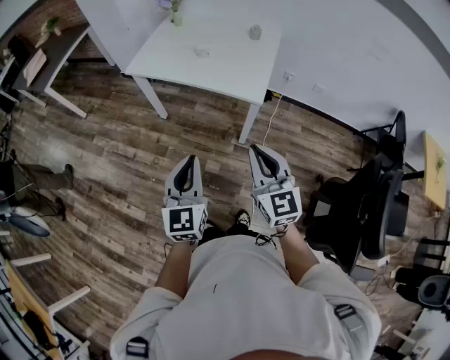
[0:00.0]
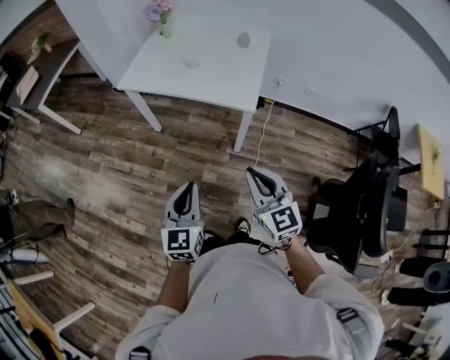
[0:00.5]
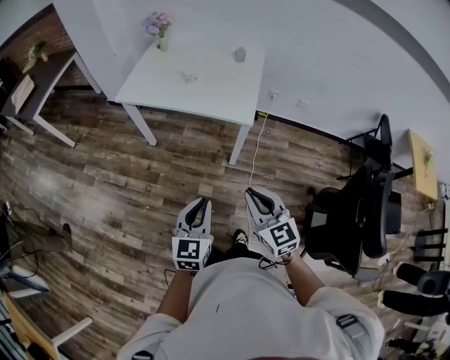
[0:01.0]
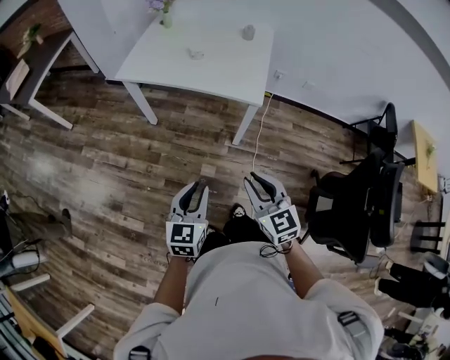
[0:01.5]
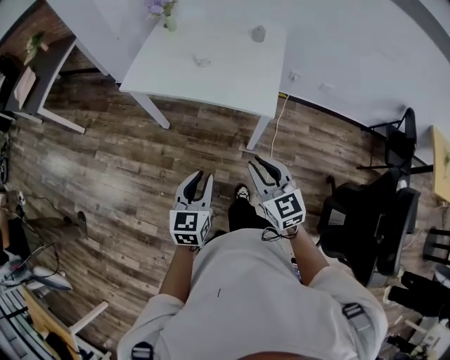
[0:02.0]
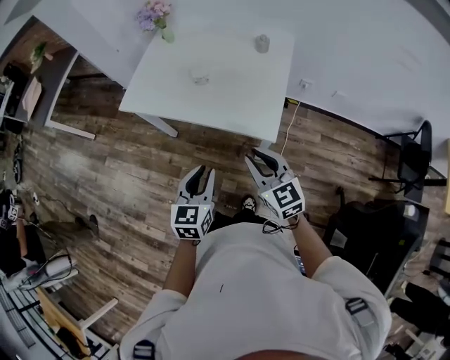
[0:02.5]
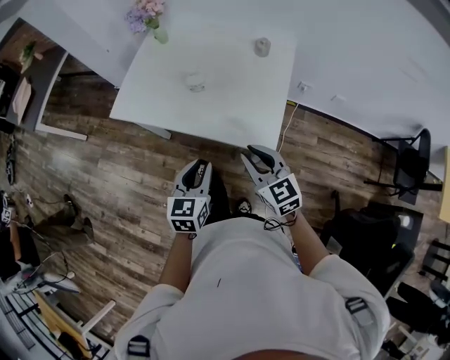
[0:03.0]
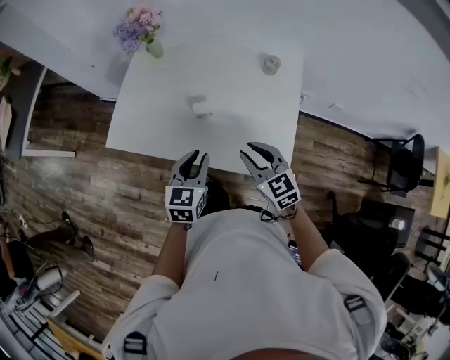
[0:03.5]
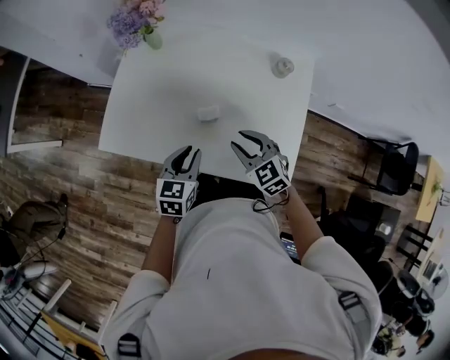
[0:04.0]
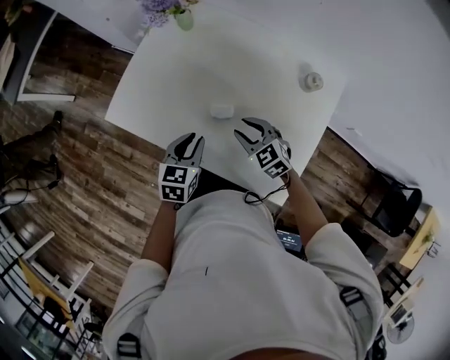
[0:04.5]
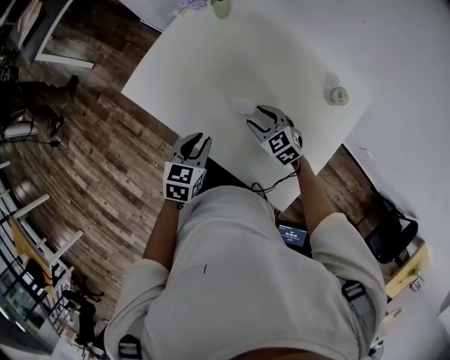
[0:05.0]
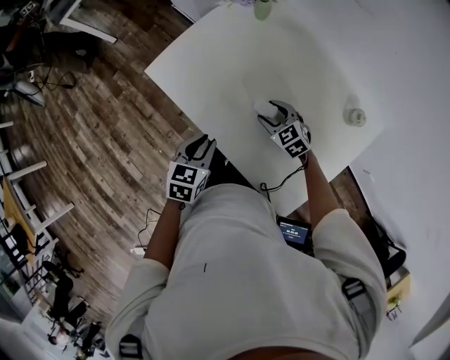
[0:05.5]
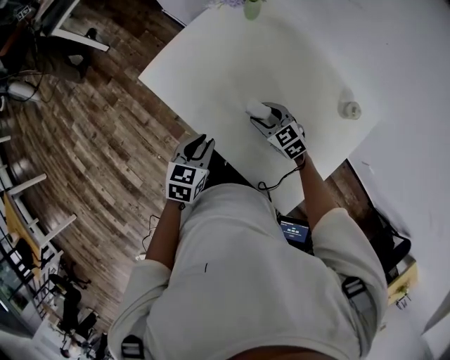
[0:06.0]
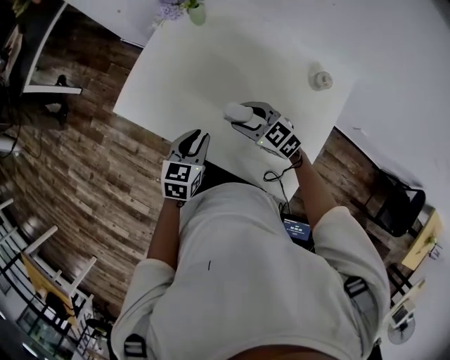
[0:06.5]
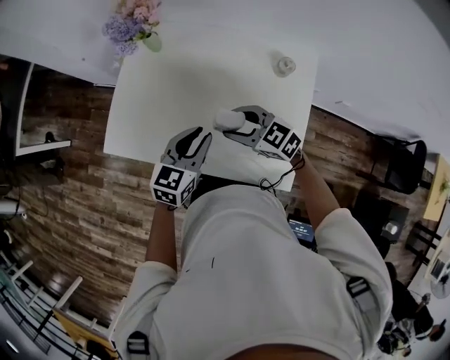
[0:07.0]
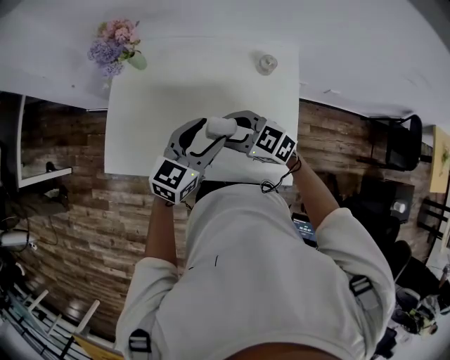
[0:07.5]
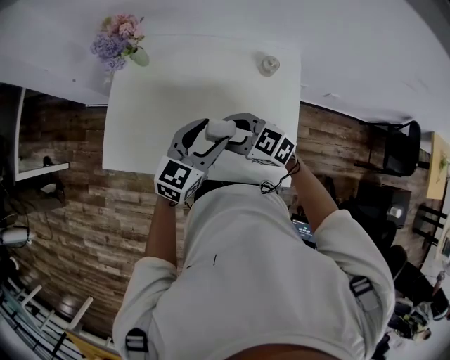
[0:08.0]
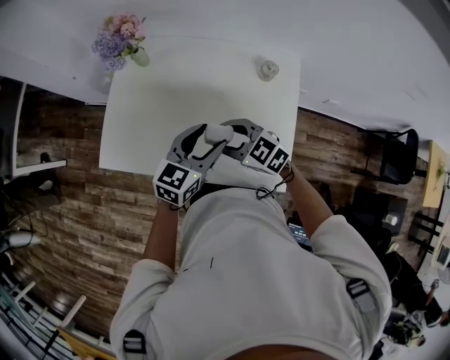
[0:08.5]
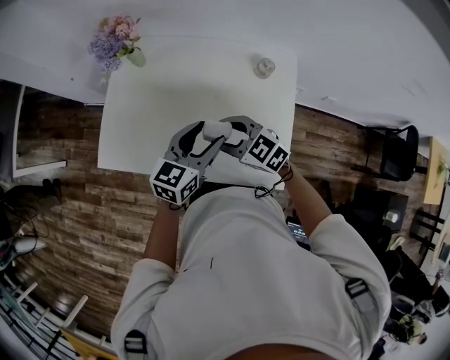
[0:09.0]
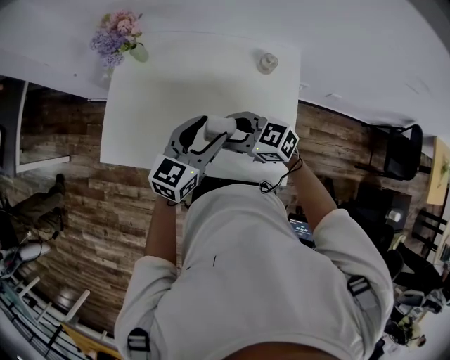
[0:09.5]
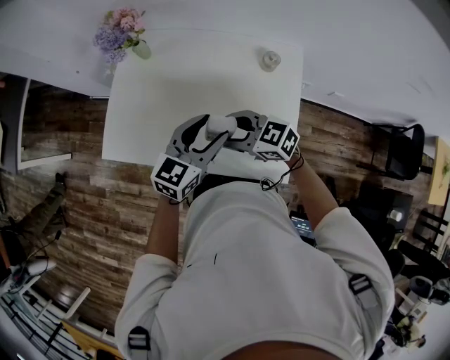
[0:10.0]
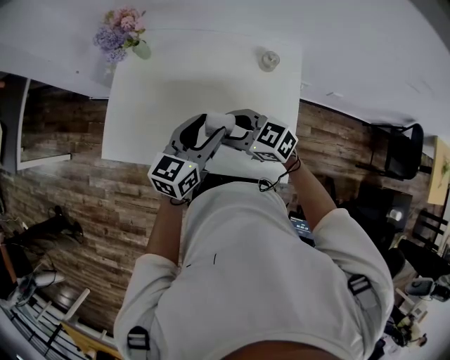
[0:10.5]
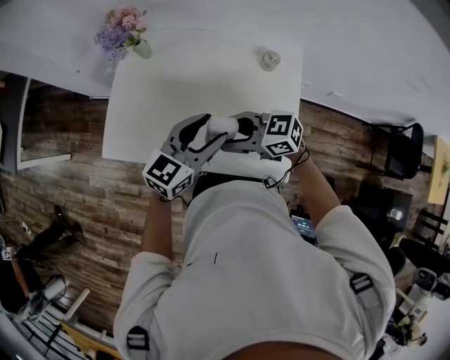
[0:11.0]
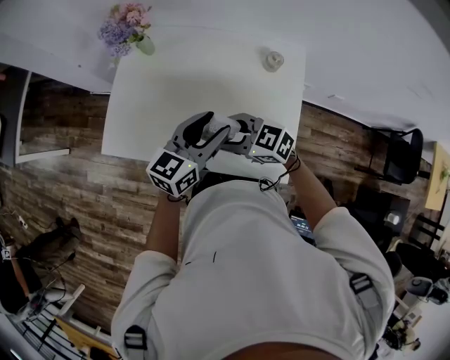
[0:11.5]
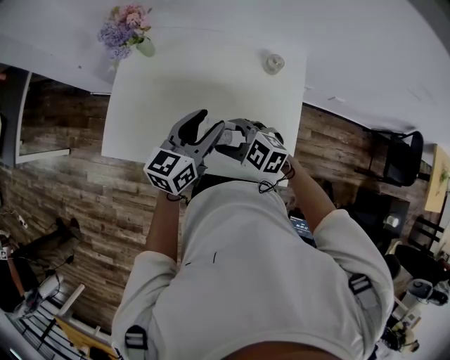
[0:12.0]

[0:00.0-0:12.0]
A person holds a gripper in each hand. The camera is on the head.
0:00.0 to 0:02.0: The right gripper is displaced forward and downward by roughly 15 cm. The left gripper moves downward and forward, approximately 15 cm, and swivels approximately 20 degrees.
0:02.0 to 0:04.0: The two grippers travel together, forward, approximately 50 cm. The right gripper changes its angle by about 20 degrees.
0:04.0 to 0:06.0: The right gripper ends up roughly 15 cm from where it was, and turns by approximately 30 degrees, while the left gripper shifts by roughly 5 cm, and rotates about 20 degrees.
0:06.0 to 0:08.0: The left gripper ends up some 20 cm from where it was, swivels roughly 50 degrees, and opens, while the right gripper goes approximately 15 cm upward.
0:08.0 to 0:10.0: There are only small adjustments of the grippers.
0:10.0 to 0:12.0: The right gripper rotates about 20 degrees.

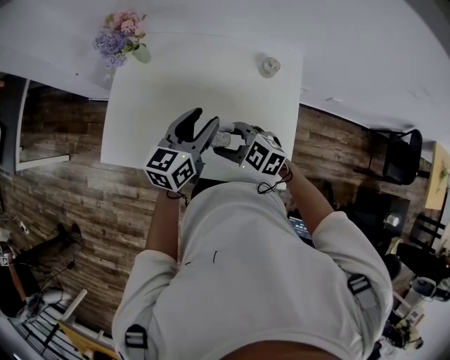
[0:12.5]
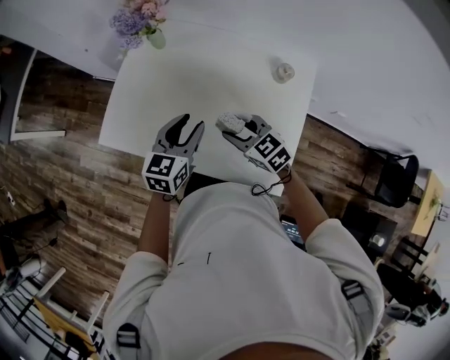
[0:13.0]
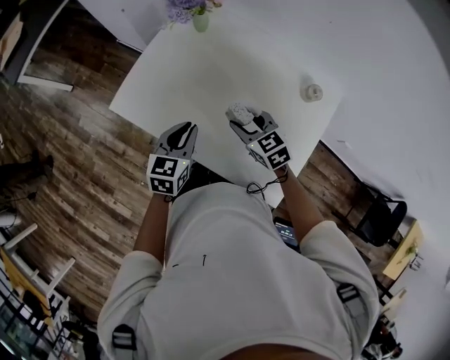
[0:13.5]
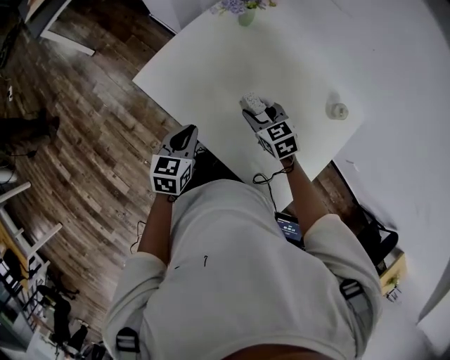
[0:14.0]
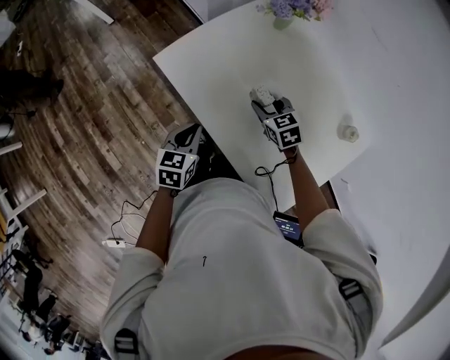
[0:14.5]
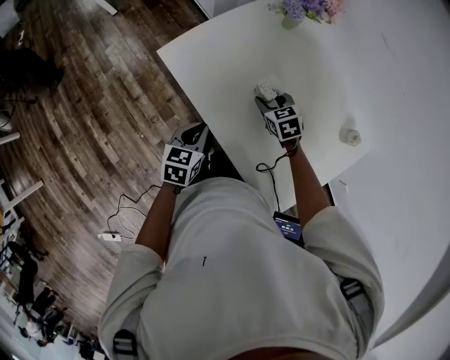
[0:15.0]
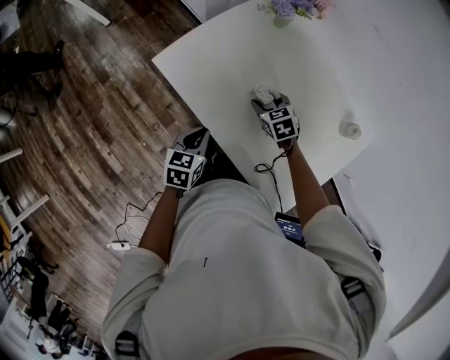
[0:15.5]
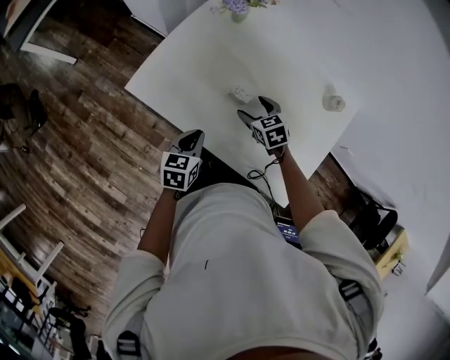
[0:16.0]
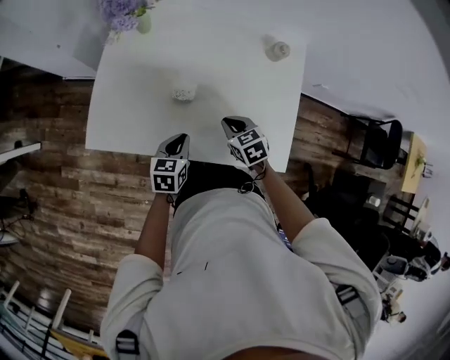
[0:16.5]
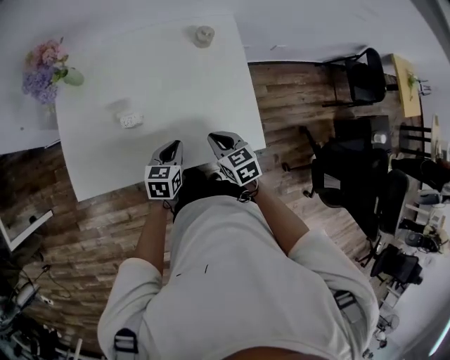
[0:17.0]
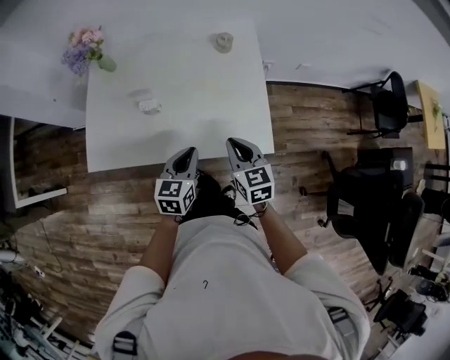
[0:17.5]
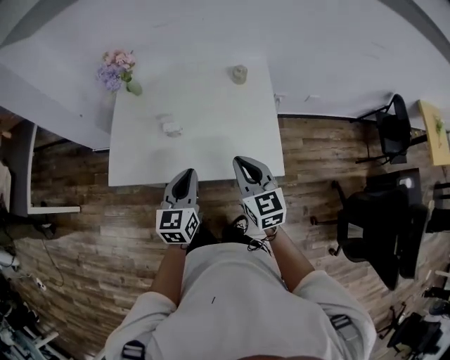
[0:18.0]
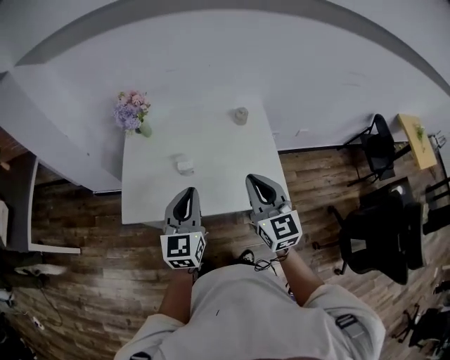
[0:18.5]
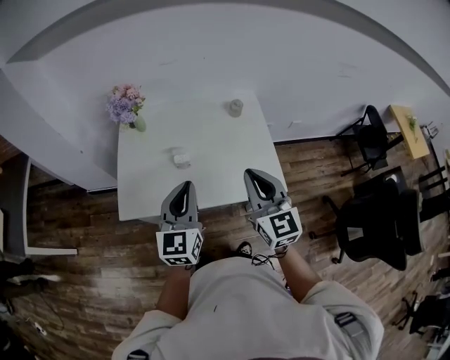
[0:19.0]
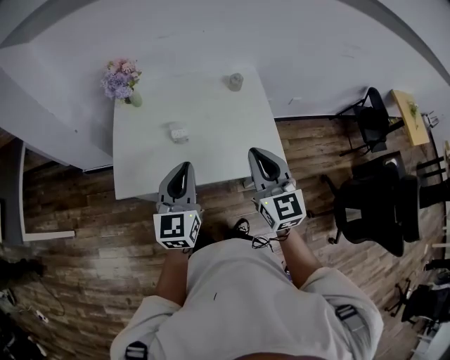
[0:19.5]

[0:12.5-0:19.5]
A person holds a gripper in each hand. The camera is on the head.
0:12.5 to 0:14.5: The right gripper is displaced forward, downward and to the left by about 20 cm. Meanwhile the left gripper goes roughly 30 cm to the left and downward, swivels about 50 degrees, and closes.
0:14.5 to 0:16.0: There are only small adjustments of the grippers.
0:16.0 to 0:17.5: The left gripper changes place by roughly 25 cm, and turns by about 40 degrees. Meanwhile the right gripper ends up about 35 cm from where it was, rotates roughly 50 degrees, and closes.
0:17.5 to 0:19.5: The two grippers go roughly 25 cm upward and to the left. The right gripper rotates roughly 30 degrees. The left gripper swivels roughly 30 degrees.

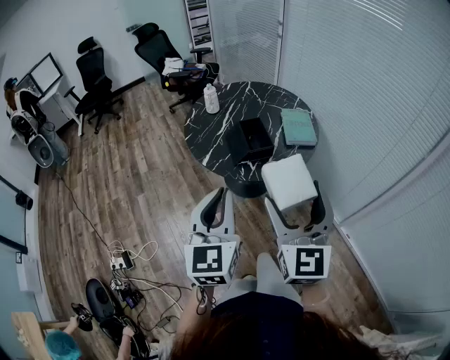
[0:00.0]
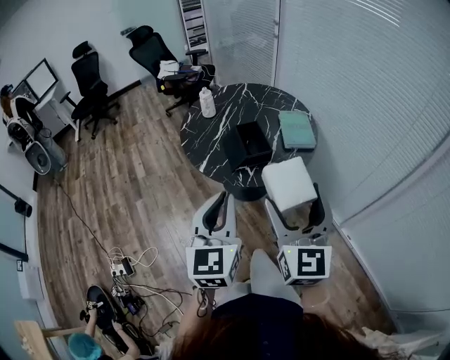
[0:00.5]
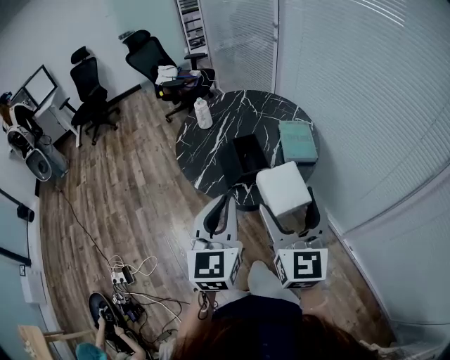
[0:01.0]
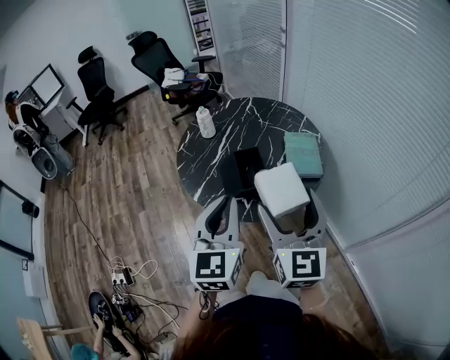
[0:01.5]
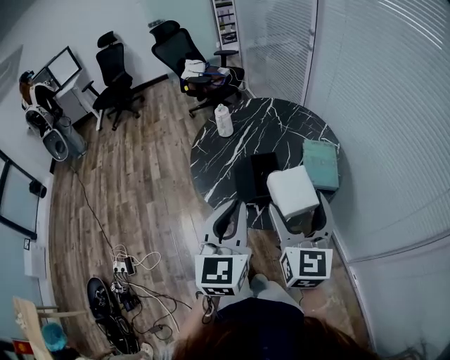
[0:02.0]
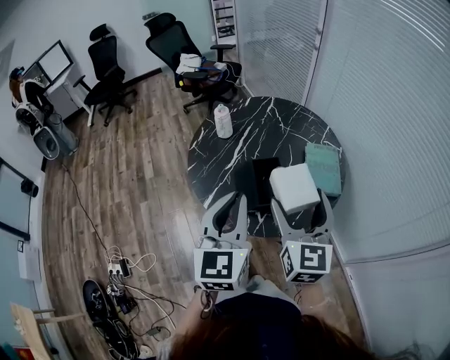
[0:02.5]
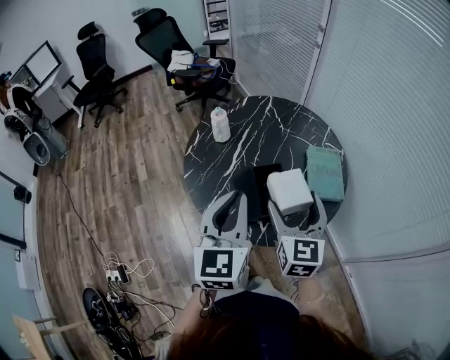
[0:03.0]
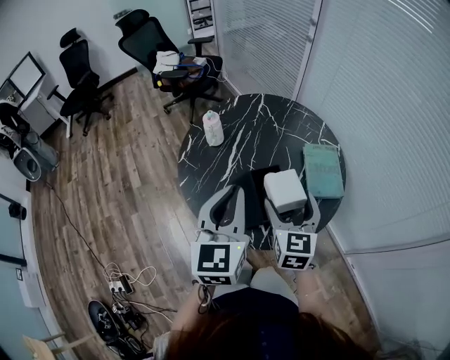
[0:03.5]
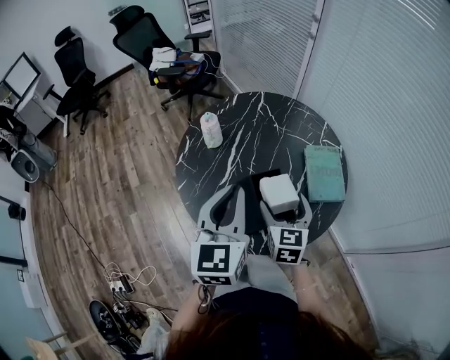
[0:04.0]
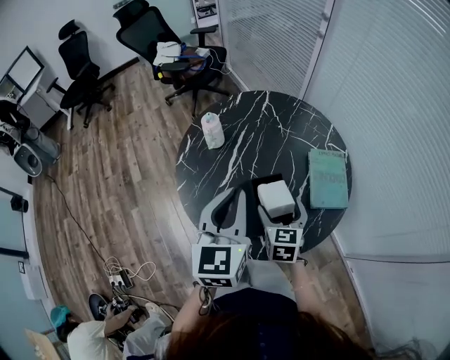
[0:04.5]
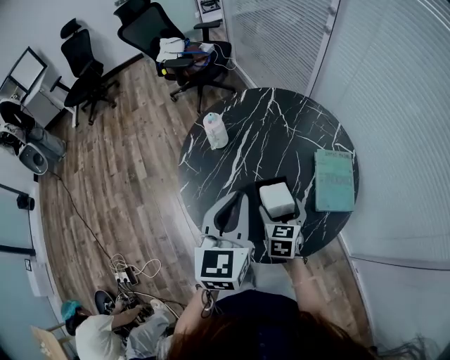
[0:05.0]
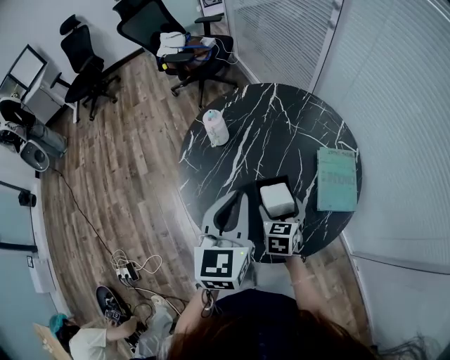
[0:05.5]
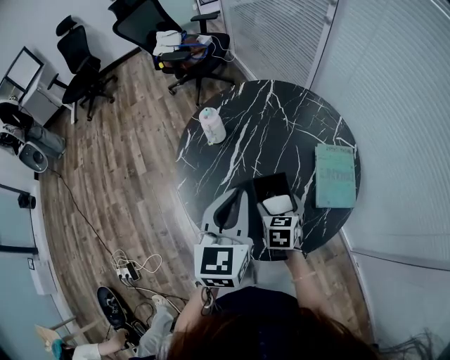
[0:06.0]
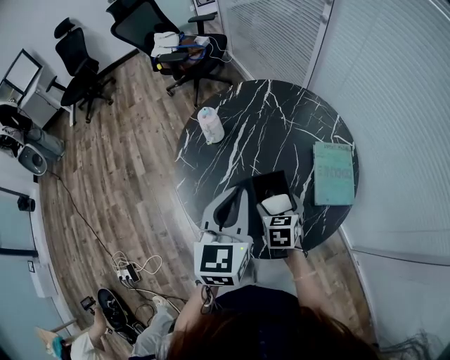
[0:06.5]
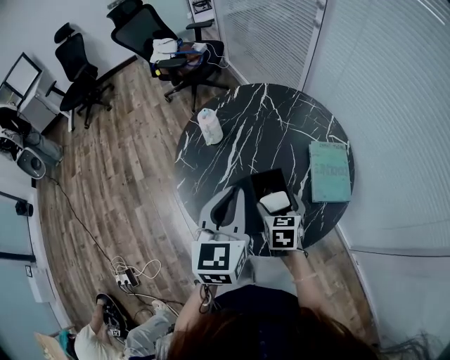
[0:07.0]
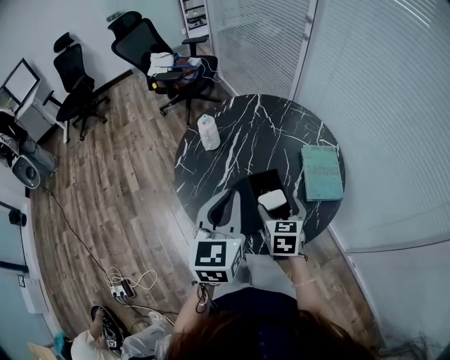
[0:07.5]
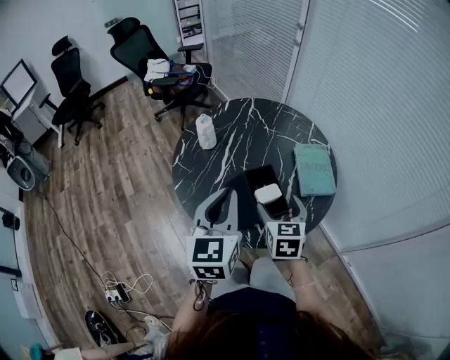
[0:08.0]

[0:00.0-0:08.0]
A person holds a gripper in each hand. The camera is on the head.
0:00.0 to 0:02.0: The two grippers go some 20 cm forward.
0:02.0 to 0:04.0: The right gripper is displaced forward and downward by about 25 cm, and changes its angle by about 30 degrees; the left gripper shifts roughly 20 cm forward.
0:04.0 to 0:06.0: The left gripper shifts by roughly 5 cm. Meanwhile the right gripper is displaced downward by roughly 10 cm, and rotates approximately 20 degrees.
0:06.0 to 0:08.0: The left gripper heads backward, covering roughly 10 cm; the right gripper is displaced upward and backward by some 15 cm.
